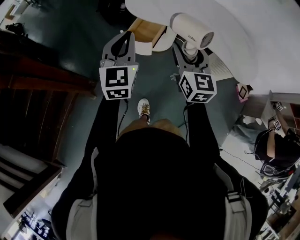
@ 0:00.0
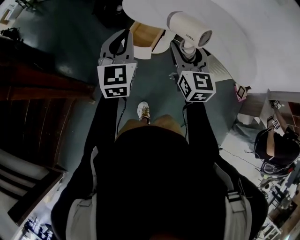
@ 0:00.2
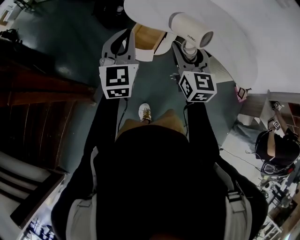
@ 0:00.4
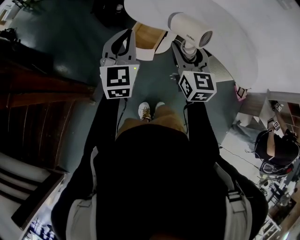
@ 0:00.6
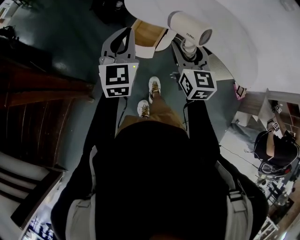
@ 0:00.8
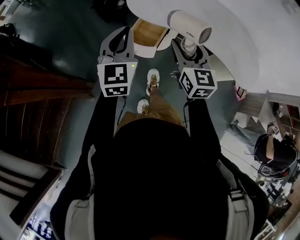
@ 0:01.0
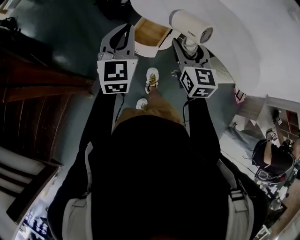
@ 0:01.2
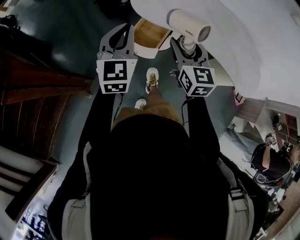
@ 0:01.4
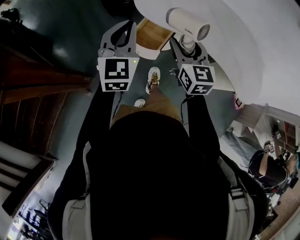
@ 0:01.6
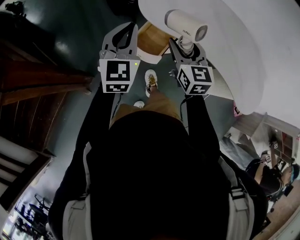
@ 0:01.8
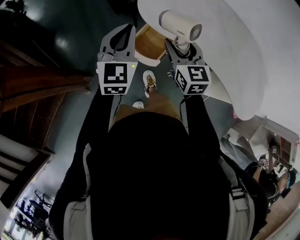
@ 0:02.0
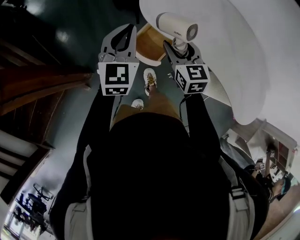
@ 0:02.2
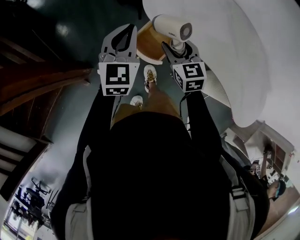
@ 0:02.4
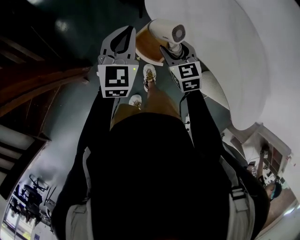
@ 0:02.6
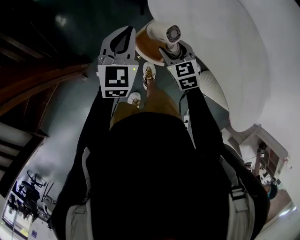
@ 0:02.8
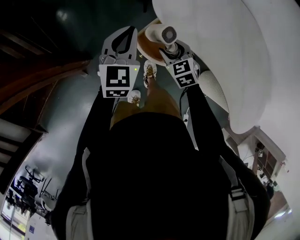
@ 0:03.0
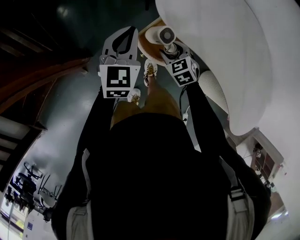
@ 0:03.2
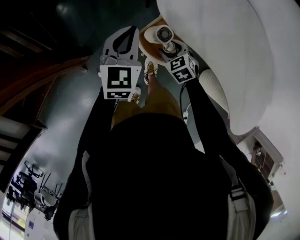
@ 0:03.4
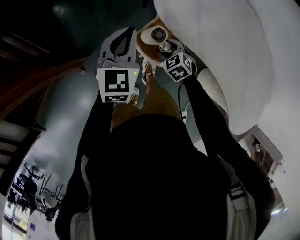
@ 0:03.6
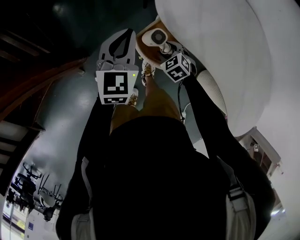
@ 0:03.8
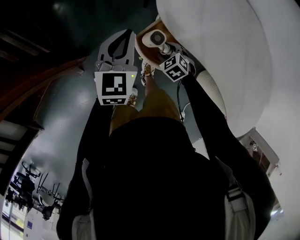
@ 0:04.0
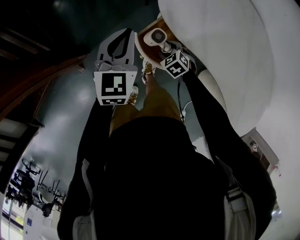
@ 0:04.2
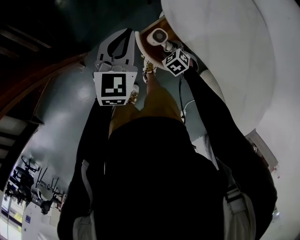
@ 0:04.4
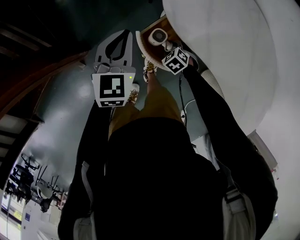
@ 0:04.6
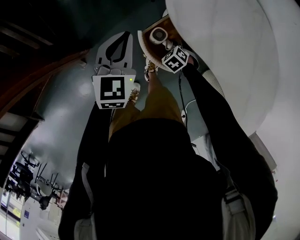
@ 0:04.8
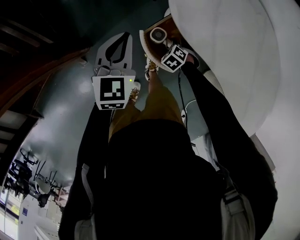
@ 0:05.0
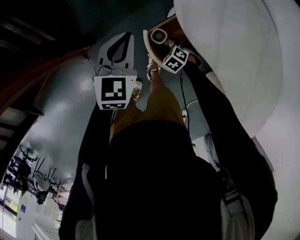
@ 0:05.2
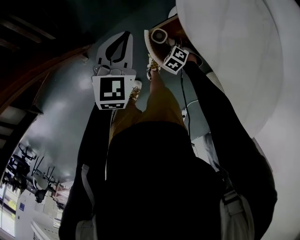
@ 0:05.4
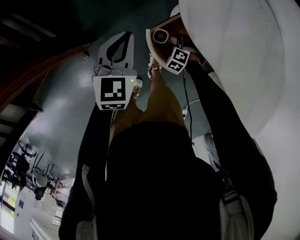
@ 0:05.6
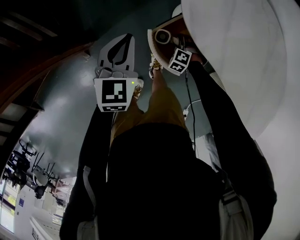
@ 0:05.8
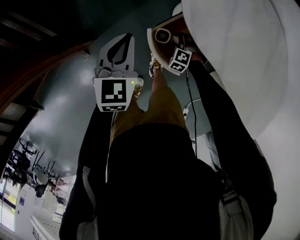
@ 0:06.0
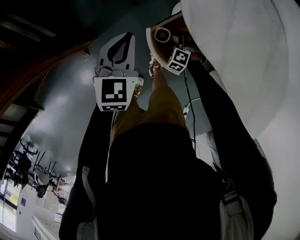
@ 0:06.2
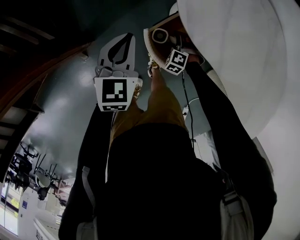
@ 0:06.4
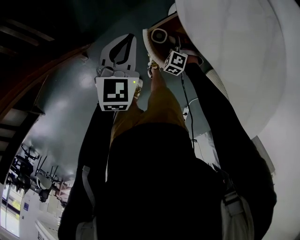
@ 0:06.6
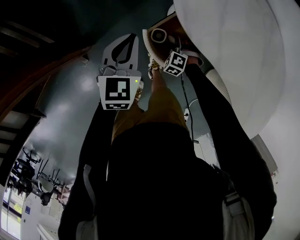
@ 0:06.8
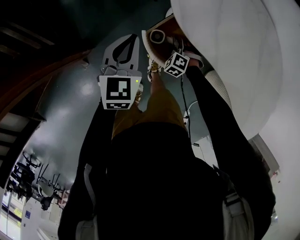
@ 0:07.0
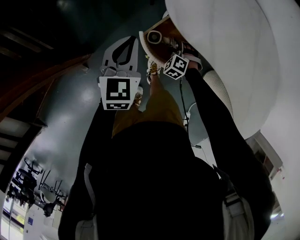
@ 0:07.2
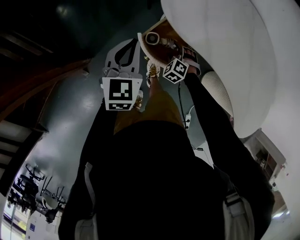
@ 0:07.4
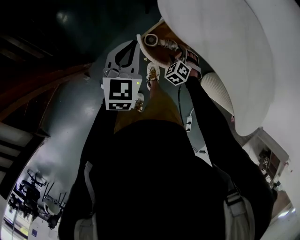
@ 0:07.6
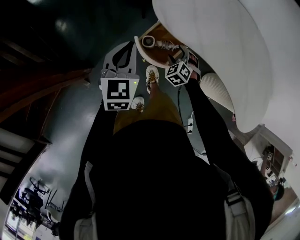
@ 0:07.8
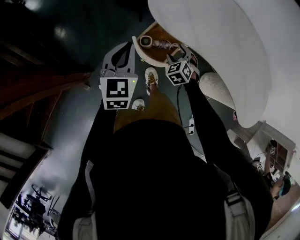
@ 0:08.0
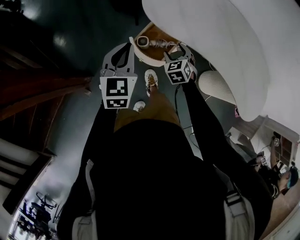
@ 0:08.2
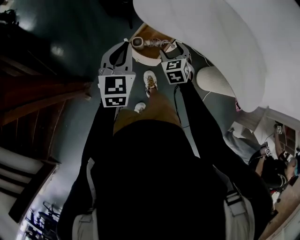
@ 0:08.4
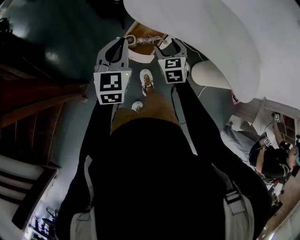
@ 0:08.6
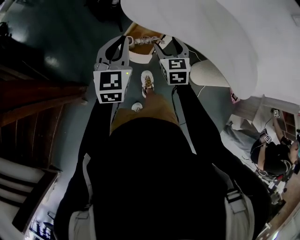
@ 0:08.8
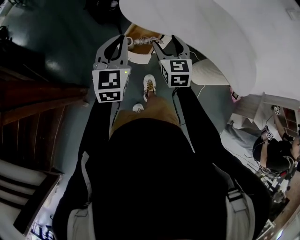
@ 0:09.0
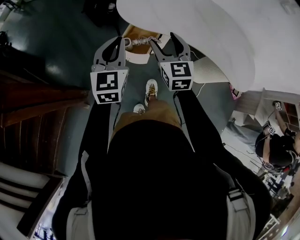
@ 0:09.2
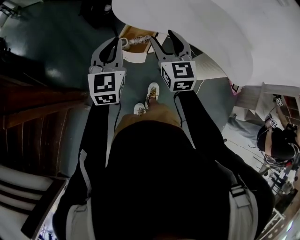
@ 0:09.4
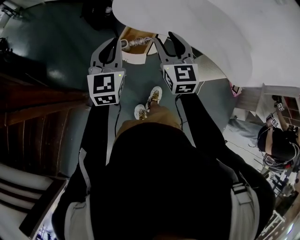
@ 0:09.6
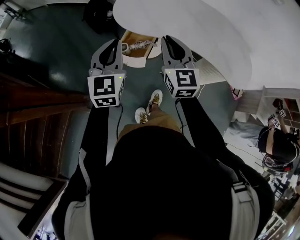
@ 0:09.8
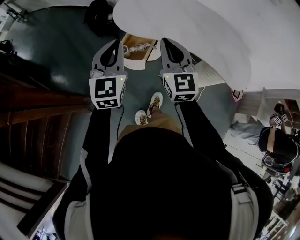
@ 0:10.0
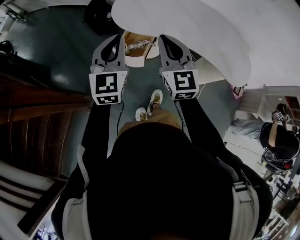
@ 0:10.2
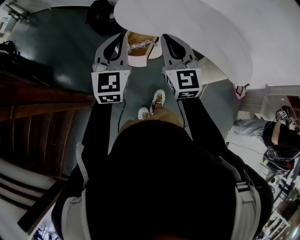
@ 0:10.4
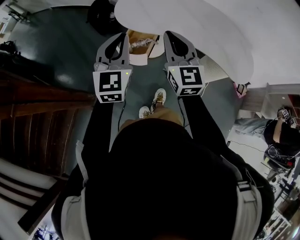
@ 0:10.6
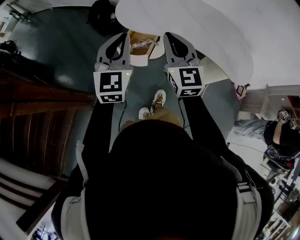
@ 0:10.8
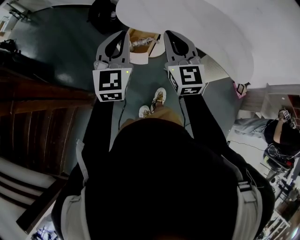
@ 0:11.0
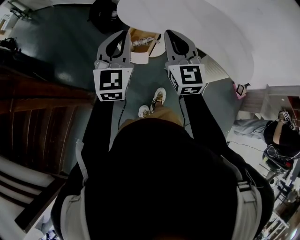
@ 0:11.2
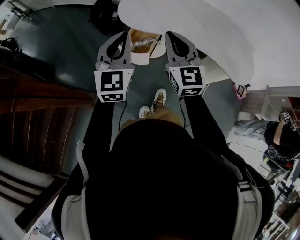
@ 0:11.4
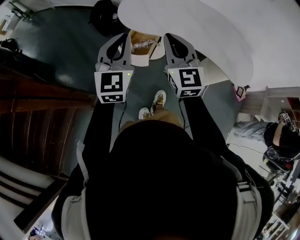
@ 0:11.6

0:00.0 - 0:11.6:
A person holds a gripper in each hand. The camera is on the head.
0:00.0 - 0:01.4: Both grippers travel together forward and to the left, some 10 cm.
0:01.4 - 0:02.8: The right gripper shifts roughly 25 cm downward and forward, and swivels some 40 degrees; the left gripper moves forward and downward, some 15 cm.
0:02.8 - 0:04.4: The right gripper heads downward, covering roughly 20 cm, and rotates roughly 30 degrees. Meanwhile the left gripper moves some 5 cm.
0:04.4 - 0:05.8: The left gripper goes roughly 5 cm downward; the right gripper travels downward by about 10 cm, and swivels roughly 40 degrees.
0:05.8 - 0:07.2: The right gripper is displaced upward by about 5 cm.
0:07.2 - 0:08.8: The left gripper shifts approximately 15 cm upward, backward and to the right, and turns by some 20 degrees; the right gripper travels upward by about 30 cm, and rotates around the line of its fingers by some 60 degrees, clockwise from behind.
0:08.8 - 0:10.2: The right gripper moves upward and backward, approximately 20 cm, changes its angle by some 30 degrees, and closes, while the left gripper is displaced upward by about 10 cm.
0:10.2 - 0:11.6: The grippers stay close to where they were, moving slightly.

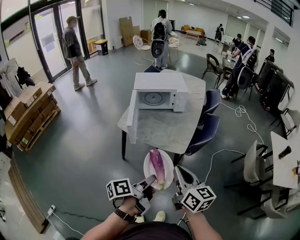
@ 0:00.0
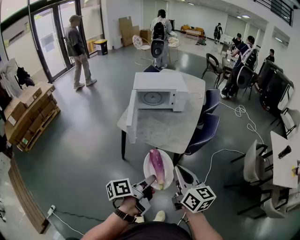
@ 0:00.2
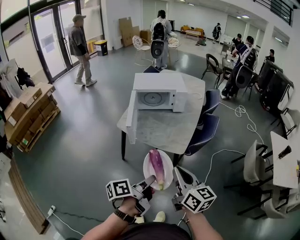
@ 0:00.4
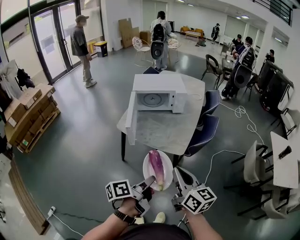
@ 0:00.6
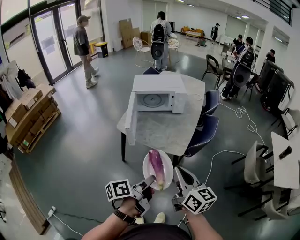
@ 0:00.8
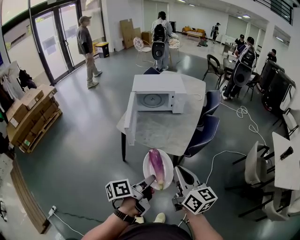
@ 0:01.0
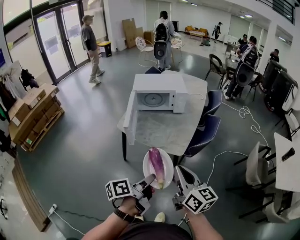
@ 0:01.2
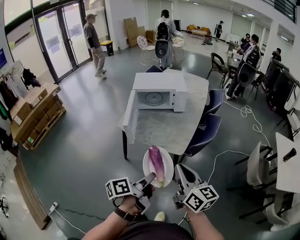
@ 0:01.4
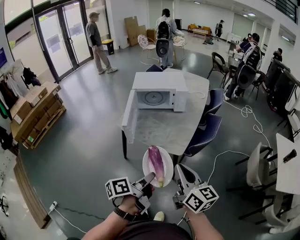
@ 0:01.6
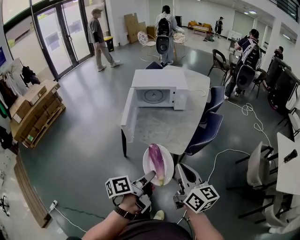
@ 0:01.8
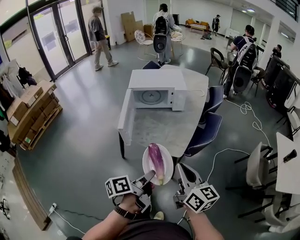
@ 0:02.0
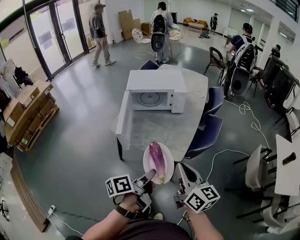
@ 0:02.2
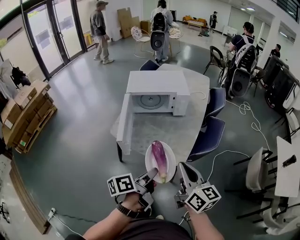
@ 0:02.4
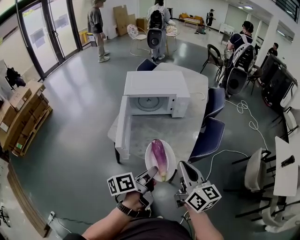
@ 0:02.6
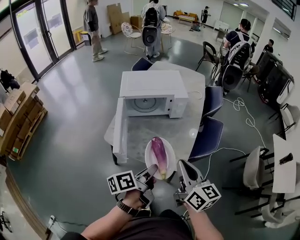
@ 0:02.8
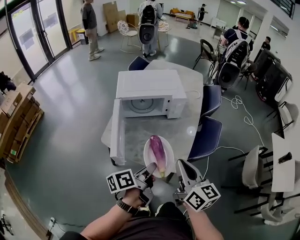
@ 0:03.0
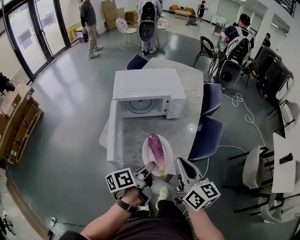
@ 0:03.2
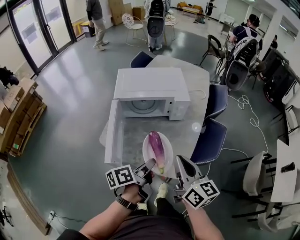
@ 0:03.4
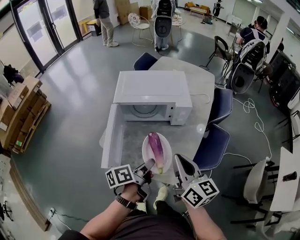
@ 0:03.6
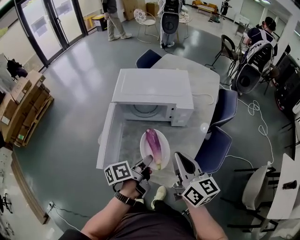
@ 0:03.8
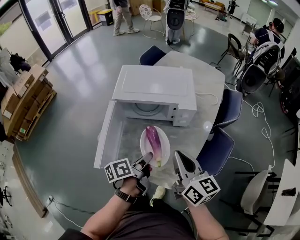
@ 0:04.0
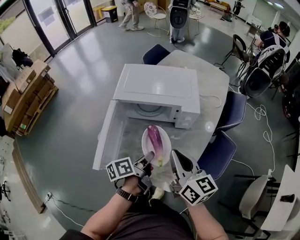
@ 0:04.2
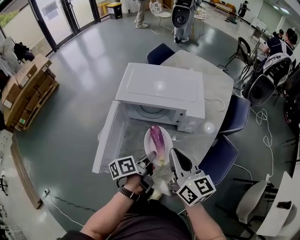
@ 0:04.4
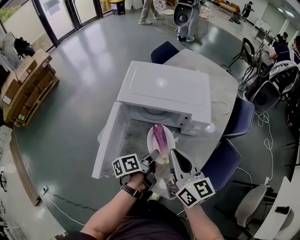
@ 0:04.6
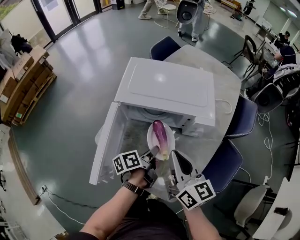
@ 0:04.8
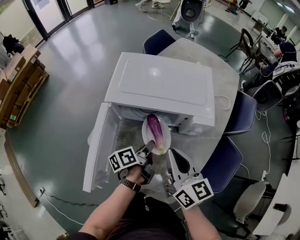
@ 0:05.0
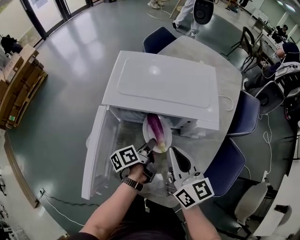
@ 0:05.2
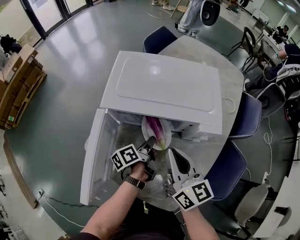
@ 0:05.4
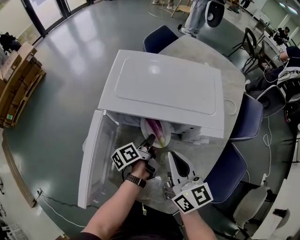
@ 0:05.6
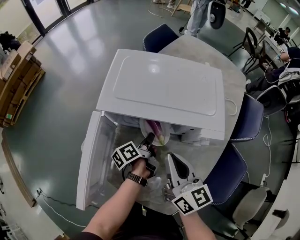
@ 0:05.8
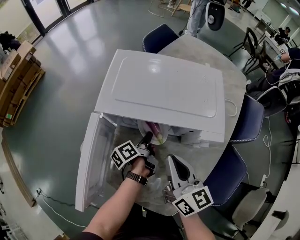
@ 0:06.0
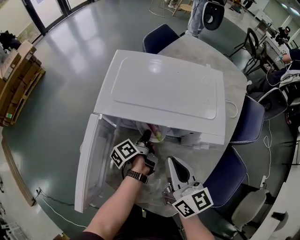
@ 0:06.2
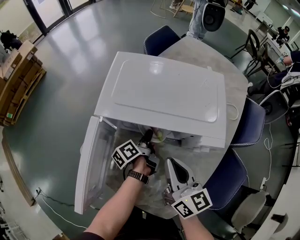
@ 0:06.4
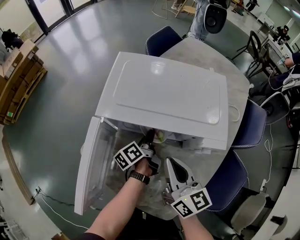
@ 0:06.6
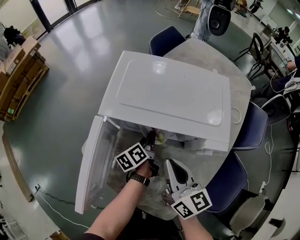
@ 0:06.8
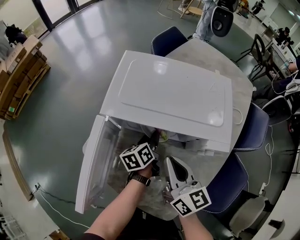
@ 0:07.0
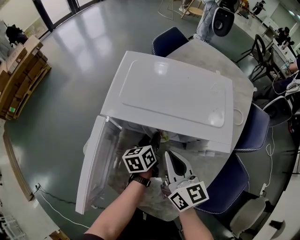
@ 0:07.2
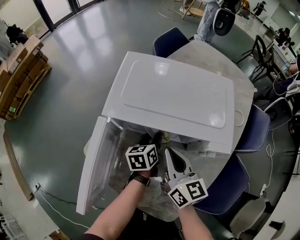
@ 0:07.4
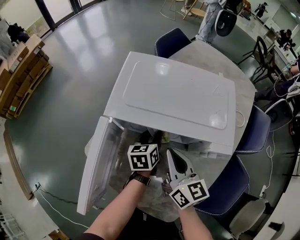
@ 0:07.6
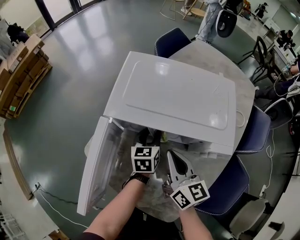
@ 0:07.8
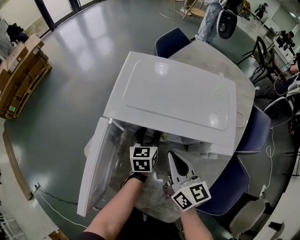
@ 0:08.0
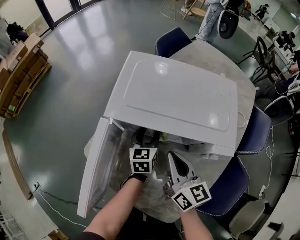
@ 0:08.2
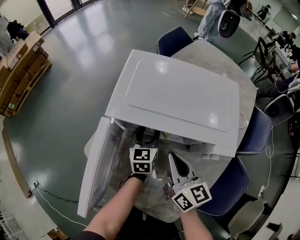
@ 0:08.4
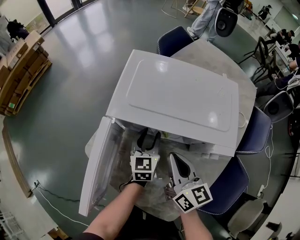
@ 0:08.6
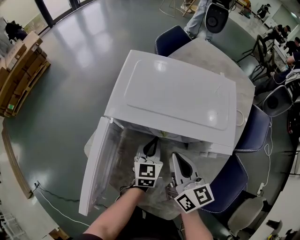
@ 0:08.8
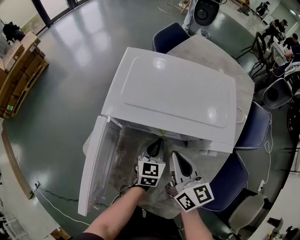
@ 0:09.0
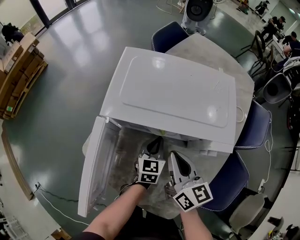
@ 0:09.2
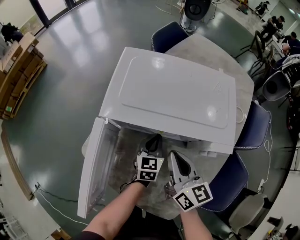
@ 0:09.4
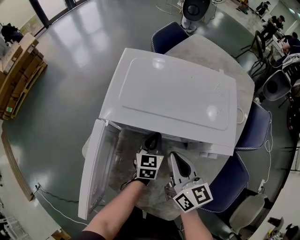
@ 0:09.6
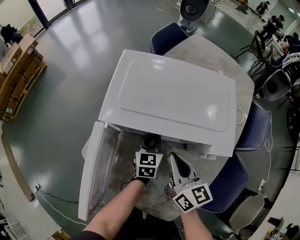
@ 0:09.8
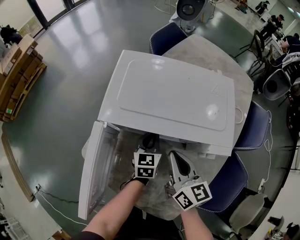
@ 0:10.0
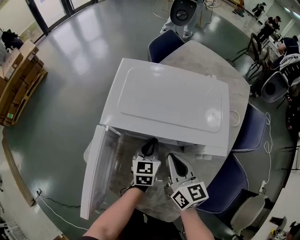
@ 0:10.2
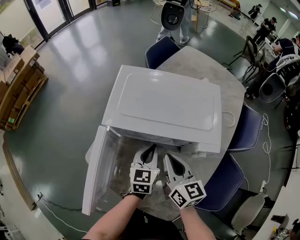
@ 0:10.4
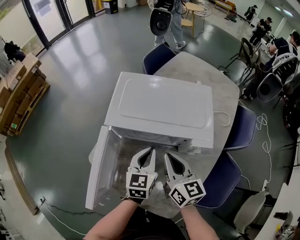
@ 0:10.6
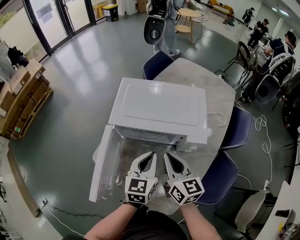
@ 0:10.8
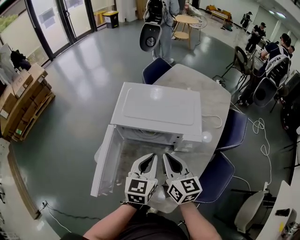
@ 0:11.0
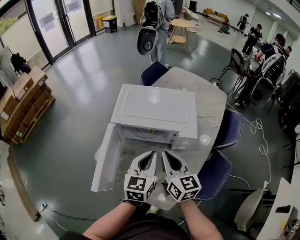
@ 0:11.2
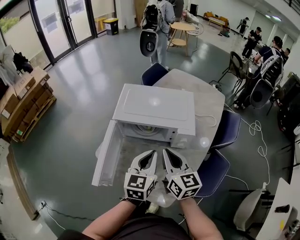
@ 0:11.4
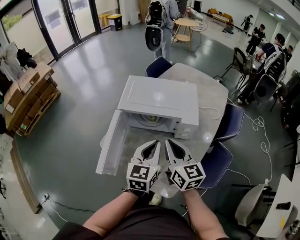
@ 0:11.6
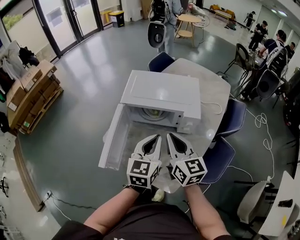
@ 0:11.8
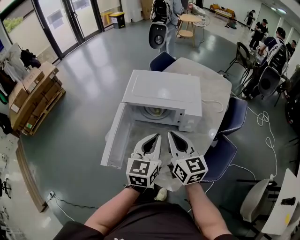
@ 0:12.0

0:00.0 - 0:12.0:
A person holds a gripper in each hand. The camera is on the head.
0:00.0 - 0:01.6: The right gripper changes place by roughly 5 cm.
0:01.6 - 0:03.0: The two grippers go roughly 25 cm forward.
0:03.0 - 0:04.4: The right gripper goes roughly 20 cm forward. Meanwhile the left gripper travels forward and downward by approximately 20 cm.
0:04.4 - 0:06.0: The left gripper heads forward and downward, covering approximately 25 cm, while the right gripper travels forward and downward by some 15 cm.
0:06.0 - 0:07.6: The left gripper rotates around the line of its fingers by approximately 50 degrees, clockwise from behind; the right gripper heads forward, covering roughly 5 cm.
0:07.6 - 0:09.0: The left gripper moves some 5 cm, rotates roughly 20 degrees, and closes its fingers.
0:09.0 - 0:10.4: The left gripper moves upward, approximately 5 cm.
0:10.4 - 0:12.0: The two grippers go roughly 25 cm upward and backward.
